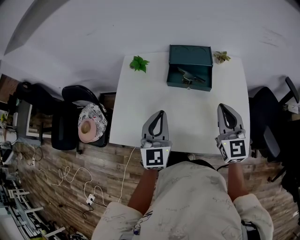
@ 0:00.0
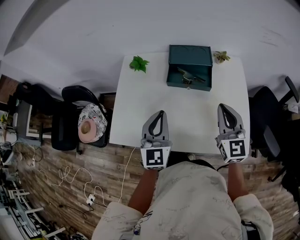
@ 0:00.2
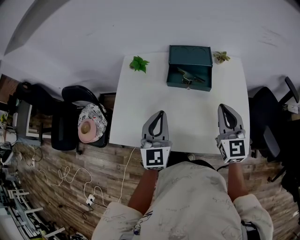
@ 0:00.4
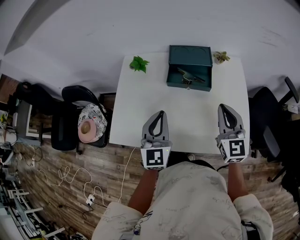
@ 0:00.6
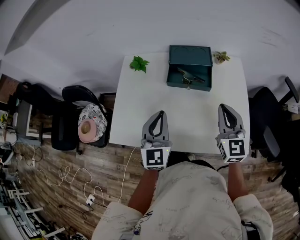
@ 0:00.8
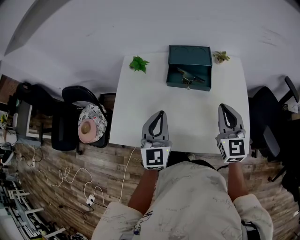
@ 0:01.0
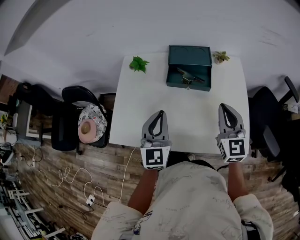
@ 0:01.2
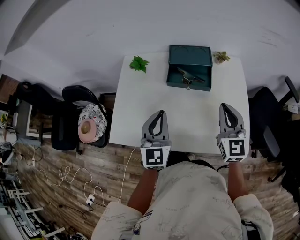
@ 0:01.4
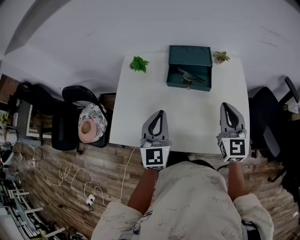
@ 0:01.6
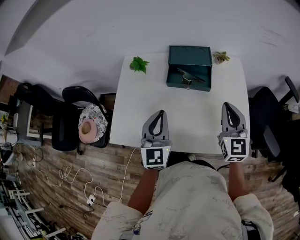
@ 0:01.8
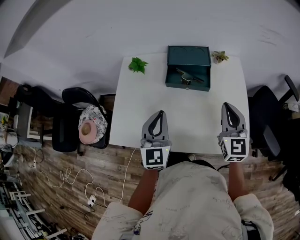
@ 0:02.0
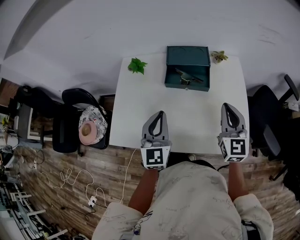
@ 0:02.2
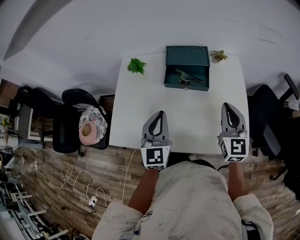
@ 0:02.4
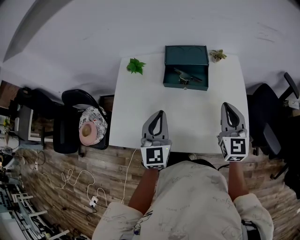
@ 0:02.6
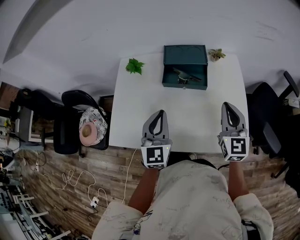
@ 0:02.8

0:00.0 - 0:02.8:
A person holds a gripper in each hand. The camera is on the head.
0:00.0 - 0:01.4: The two grippers keep their place.
0:01.4 - 0:02.8: There are only small adjustments of the grippers.

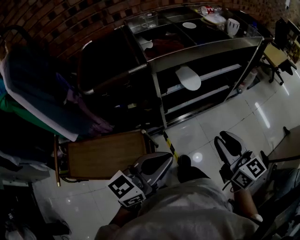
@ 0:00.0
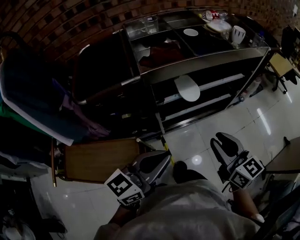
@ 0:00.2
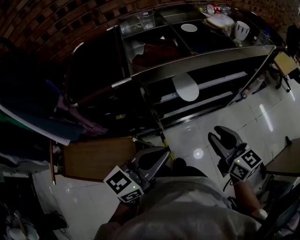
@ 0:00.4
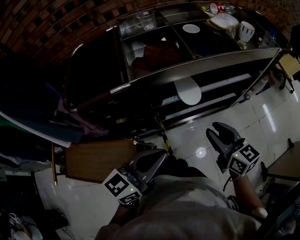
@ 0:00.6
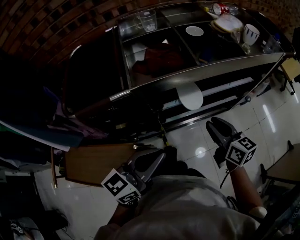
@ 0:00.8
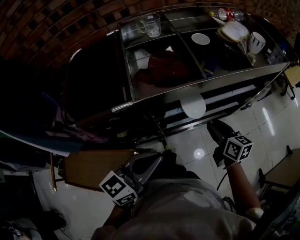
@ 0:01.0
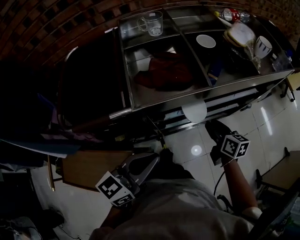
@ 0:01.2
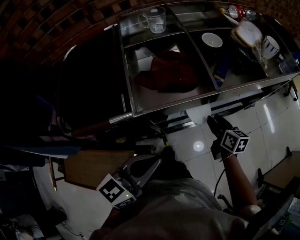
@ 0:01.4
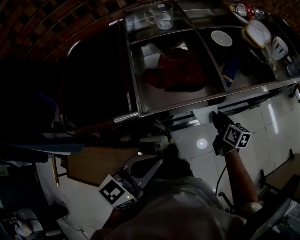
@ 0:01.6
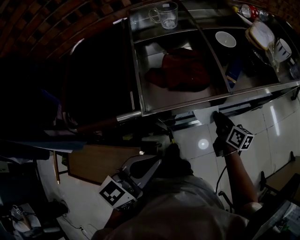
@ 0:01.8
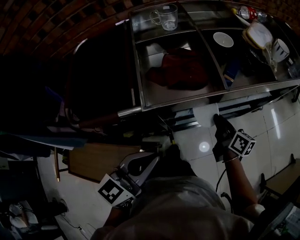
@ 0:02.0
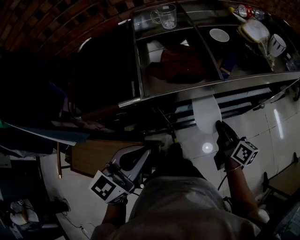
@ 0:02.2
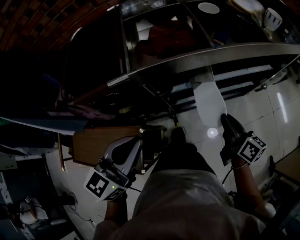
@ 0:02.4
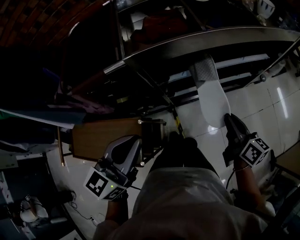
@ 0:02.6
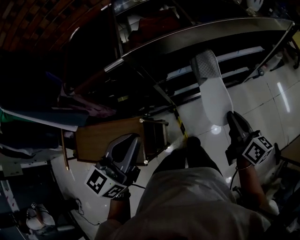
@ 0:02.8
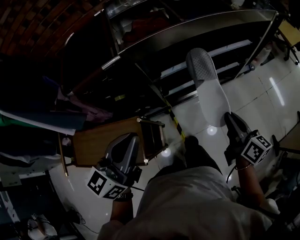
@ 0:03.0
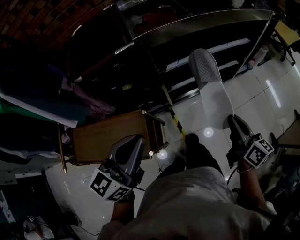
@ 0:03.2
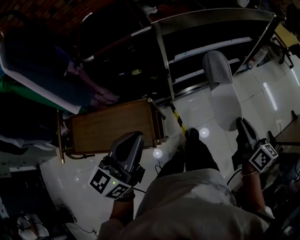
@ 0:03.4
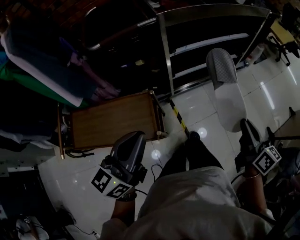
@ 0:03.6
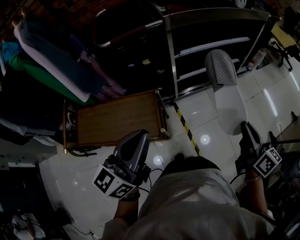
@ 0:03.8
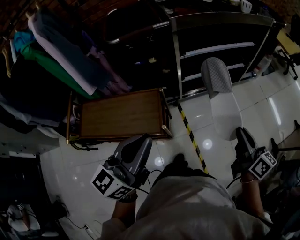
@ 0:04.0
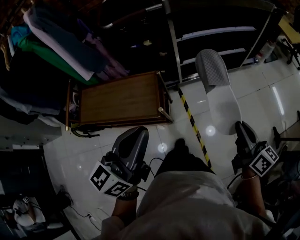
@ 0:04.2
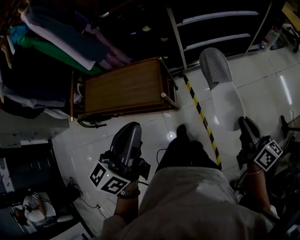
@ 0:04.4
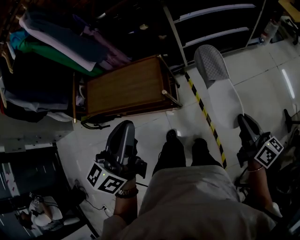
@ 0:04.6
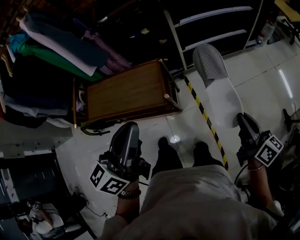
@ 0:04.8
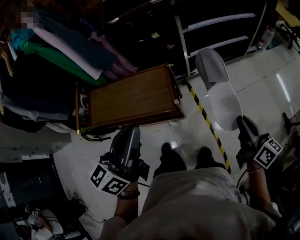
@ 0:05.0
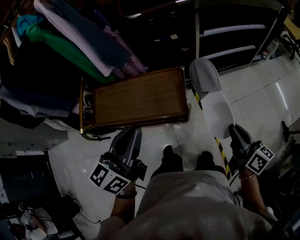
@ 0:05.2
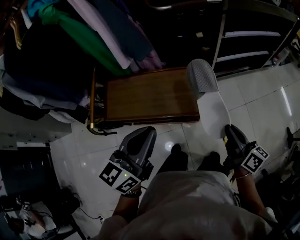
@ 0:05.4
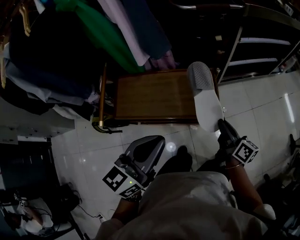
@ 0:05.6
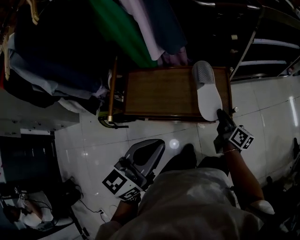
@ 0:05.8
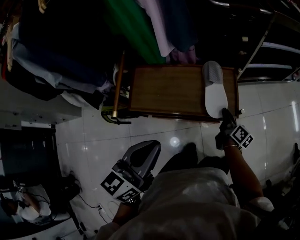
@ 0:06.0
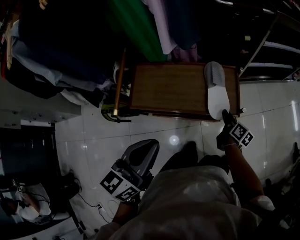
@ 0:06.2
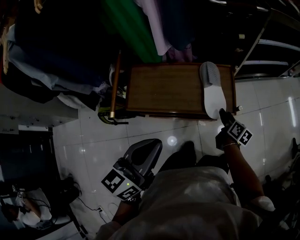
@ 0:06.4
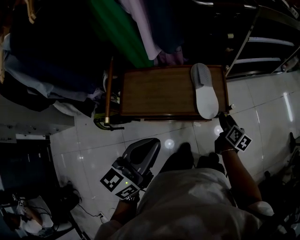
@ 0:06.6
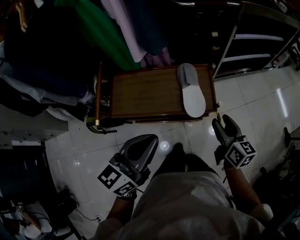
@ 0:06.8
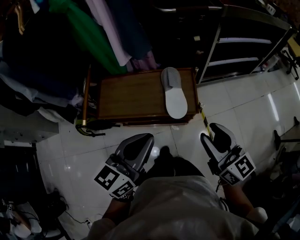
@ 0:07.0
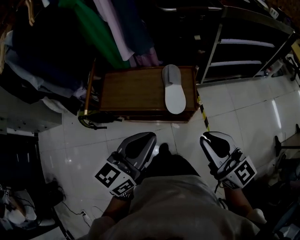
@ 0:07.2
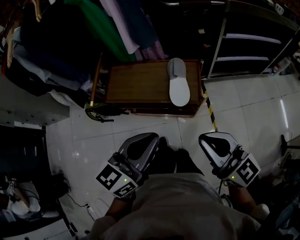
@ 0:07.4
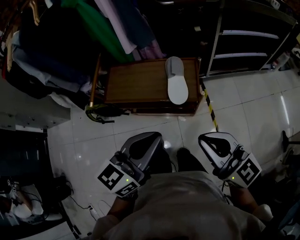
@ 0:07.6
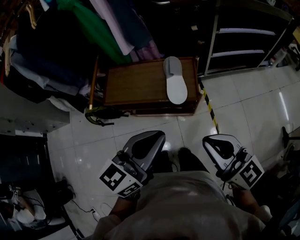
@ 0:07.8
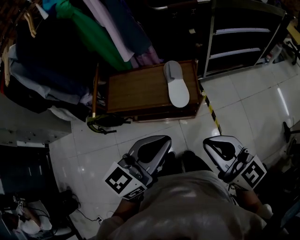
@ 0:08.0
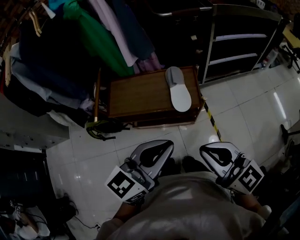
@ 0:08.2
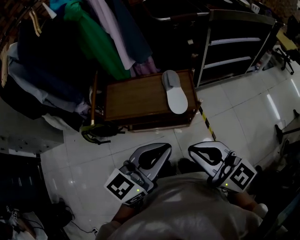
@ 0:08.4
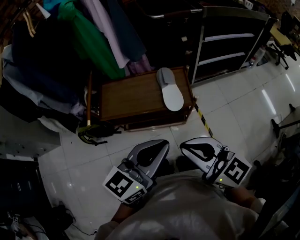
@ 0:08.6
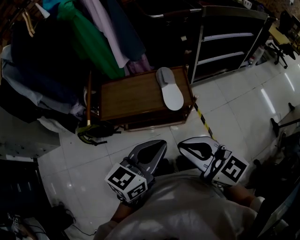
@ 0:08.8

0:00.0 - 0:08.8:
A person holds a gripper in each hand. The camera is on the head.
0:00.0 - 0:01.4: The left gripper moves forward, approximately 20 cm. Meanwhile the right gripper heads forward and downward, covering about 40 cm, turns by some 30 degrees, and opens.
0:01.4 - 0:03.0: The left gripper is displaced backward by roughly 15 cm. The right gripper shifts some 25 cm backward and upward, and closes.
0:03.0 - 0:04.4: Both grippers travel together backward, approximately 30 cm.
0:04.4 - 0:05.8: The grippers both shift to the left by approximately 35 cm.
0:05.8 - 0:07.4: The left gripper travels to the right and backward by roughly 15 cm. The right gripper is displaced upward and backward by some 35 cm, rolls counterclockwise, seen from behind, by approximately 50 degrees, and opens and closes again.
0:07.4 - 0:08.8: The right gripper heads to the left, covering roughly 15 cm, while the left gripper travels to the left by roughly 5 cm.

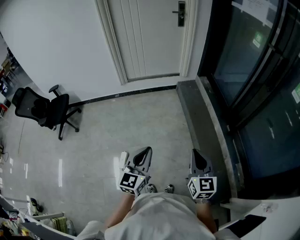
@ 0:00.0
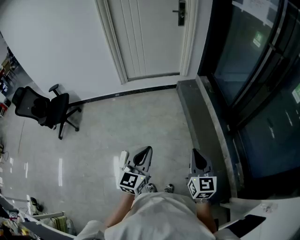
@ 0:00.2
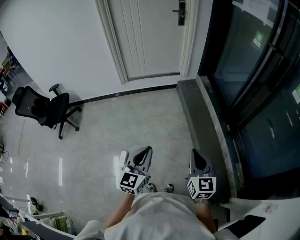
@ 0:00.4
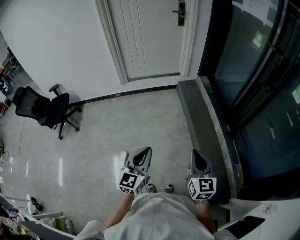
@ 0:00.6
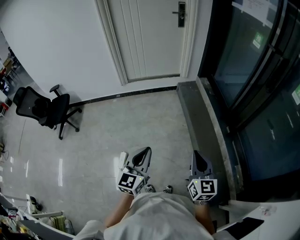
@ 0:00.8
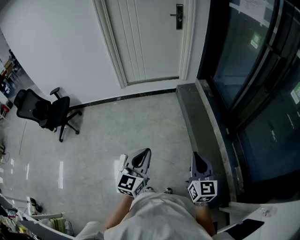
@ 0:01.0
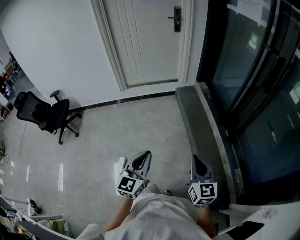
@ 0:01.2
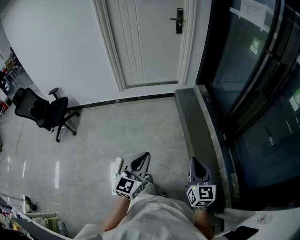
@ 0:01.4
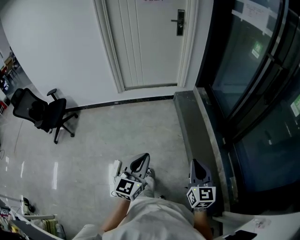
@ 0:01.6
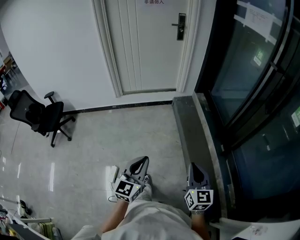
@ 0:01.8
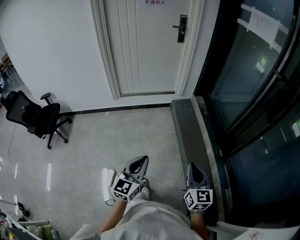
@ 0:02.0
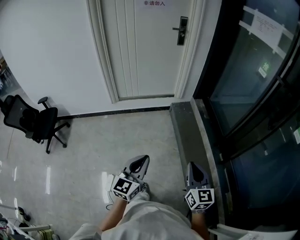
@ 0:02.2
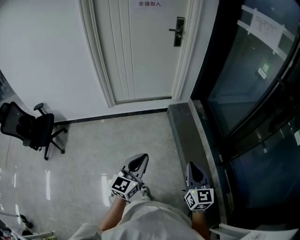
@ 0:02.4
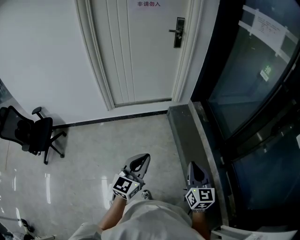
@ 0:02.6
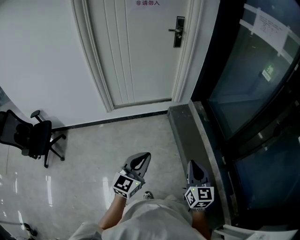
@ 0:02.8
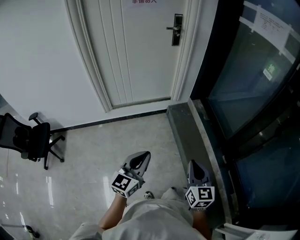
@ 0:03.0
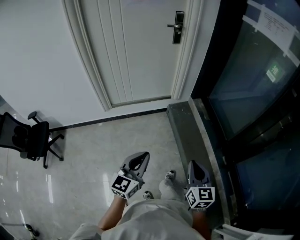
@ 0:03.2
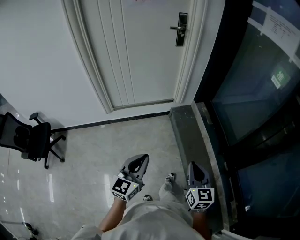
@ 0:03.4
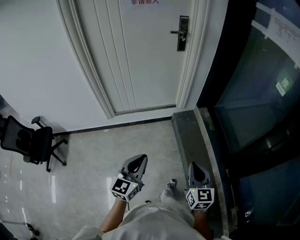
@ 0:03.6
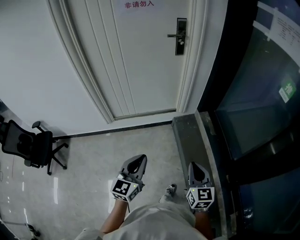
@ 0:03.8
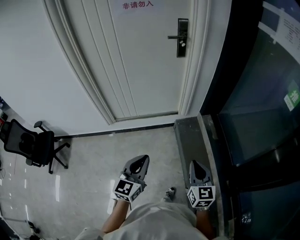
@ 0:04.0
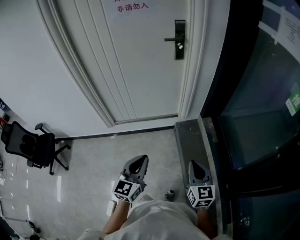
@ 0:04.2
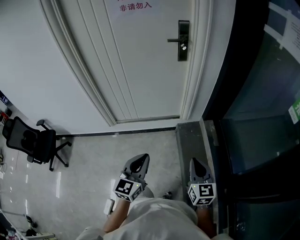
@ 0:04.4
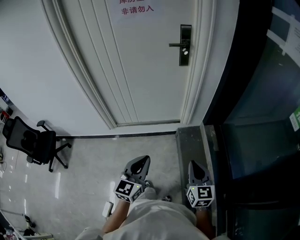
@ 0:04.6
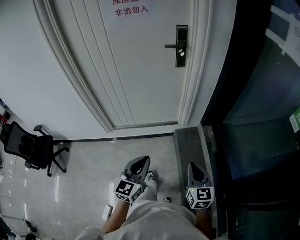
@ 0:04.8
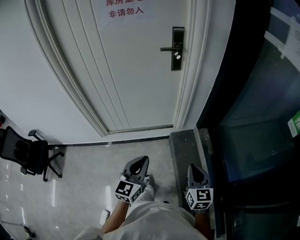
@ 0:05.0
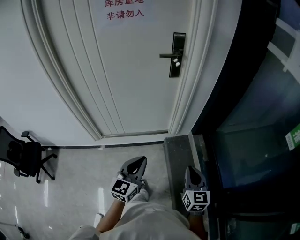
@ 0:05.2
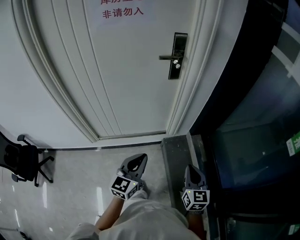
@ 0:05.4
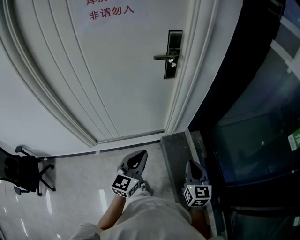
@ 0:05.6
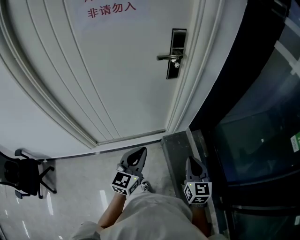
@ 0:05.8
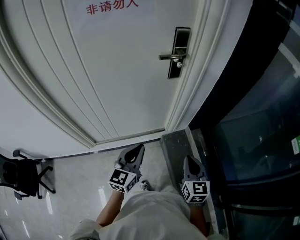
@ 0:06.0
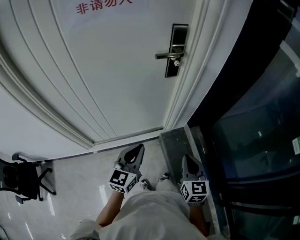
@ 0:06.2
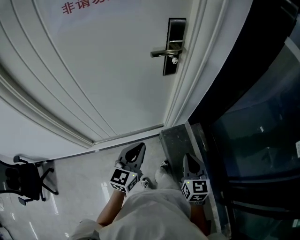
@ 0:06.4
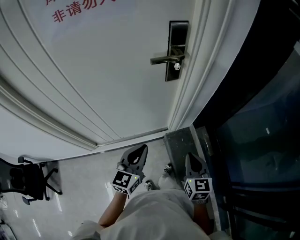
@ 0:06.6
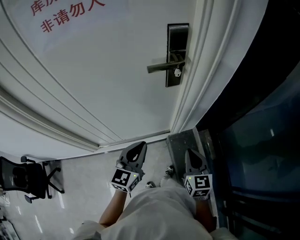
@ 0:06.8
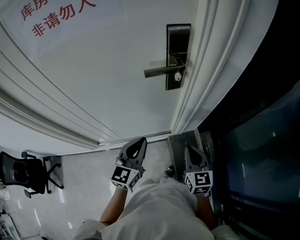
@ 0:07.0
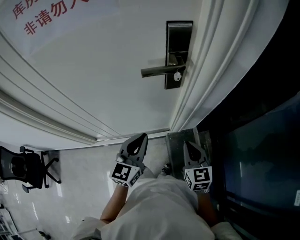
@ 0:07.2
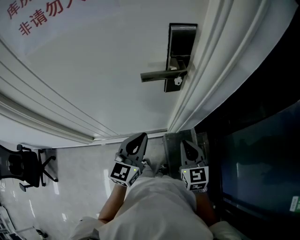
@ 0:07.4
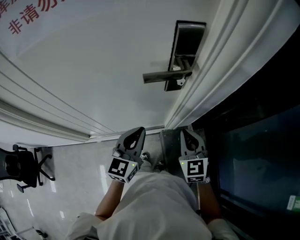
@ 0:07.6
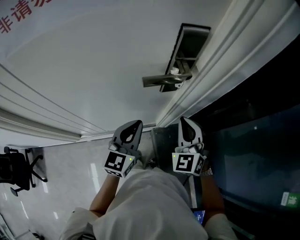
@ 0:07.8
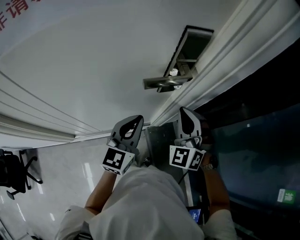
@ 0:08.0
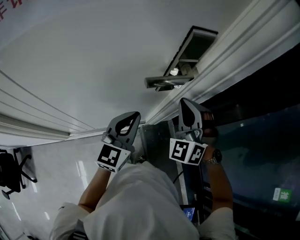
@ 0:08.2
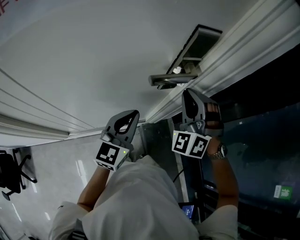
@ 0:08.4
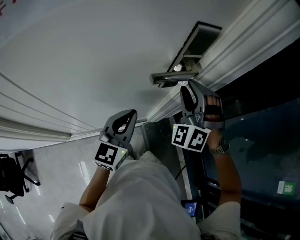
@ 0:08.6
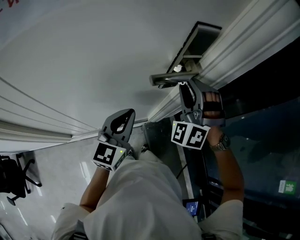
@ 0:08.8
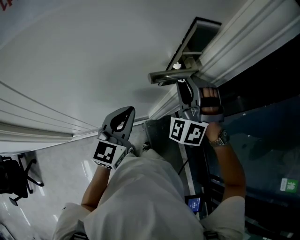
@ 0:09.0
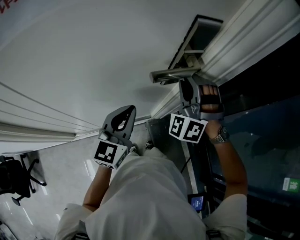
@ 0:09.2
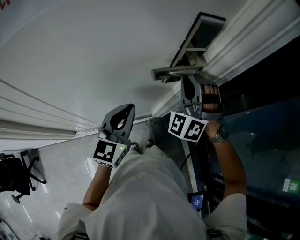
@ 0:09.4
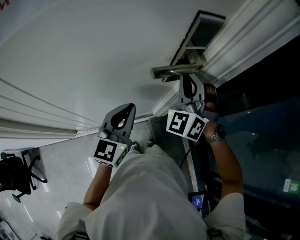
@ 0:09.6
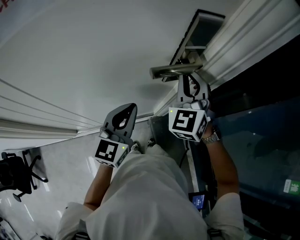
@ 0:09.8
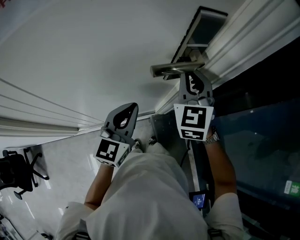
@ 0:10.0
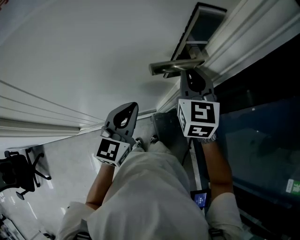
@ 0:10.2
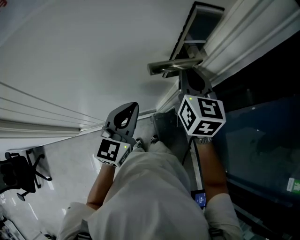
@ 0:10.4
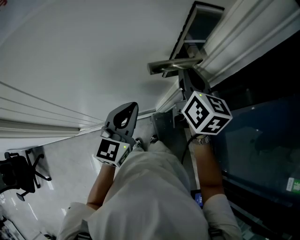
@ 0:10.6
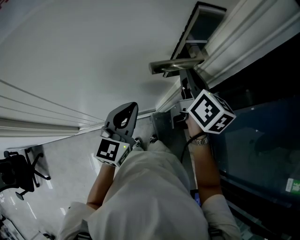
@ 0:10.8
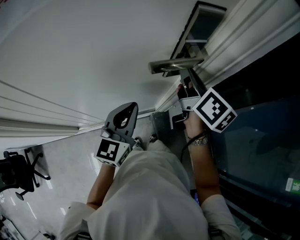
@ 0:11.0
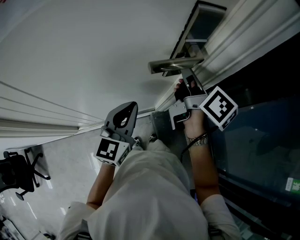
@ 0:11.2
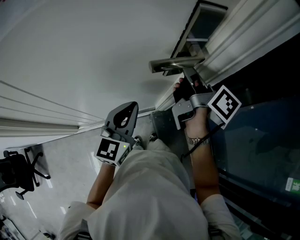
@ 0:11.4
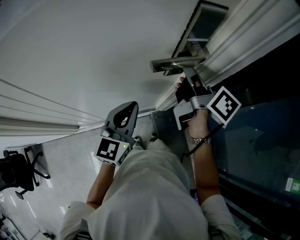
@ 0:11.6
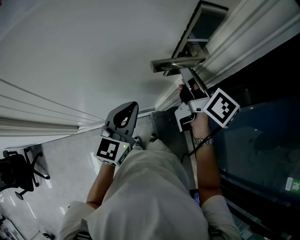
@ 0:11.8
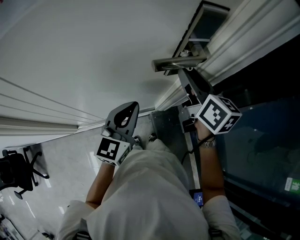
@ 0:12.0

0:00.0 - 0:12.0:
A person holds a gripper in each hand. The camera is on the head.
0:00.0 - 0:01.6: The two grippers go some 5 cm to the right.
0:01.6 - 0:03.0: The two grippers go roughly 30 cm forward.
0:03.0 - 0:04.4: Both grippers move forward, roughly 30 cm.
0:04.4 - 0:06.0: The grippers both shift forward by about 30 cm.
0:06.0 - 0:07.6: The two grippers go some 25 cm forward. The right gripper changes its angle by about 20 degrees.
0:07.6 - 0:09.0: The right gripper heads forward, upward and to the left, covering about 20 cm, rotates around the line of its fingers by approximately 60 degrees, counterclockwise from behind, and opens up; the left gripper goes about 5 cm forward.
0:09.0 - 0:10.4: The right gripper rotates around the line of its fingers by roughly 80 degrees, clockwise from behind, and closes.
0:10.4 - 0:12.0: The right gripper changes its angle by some 30 degrees, and opens up.
